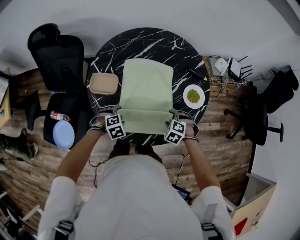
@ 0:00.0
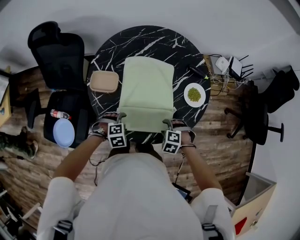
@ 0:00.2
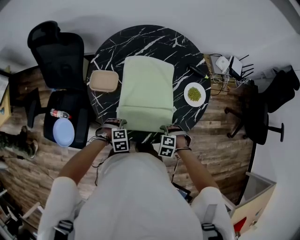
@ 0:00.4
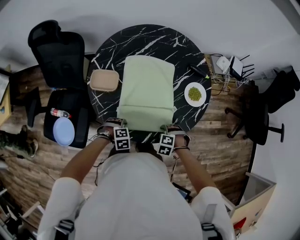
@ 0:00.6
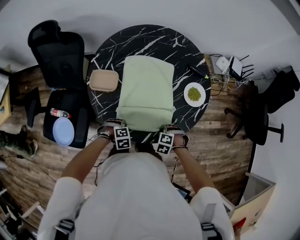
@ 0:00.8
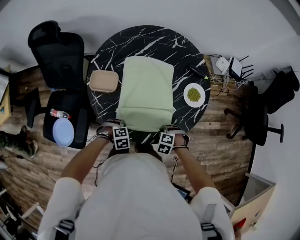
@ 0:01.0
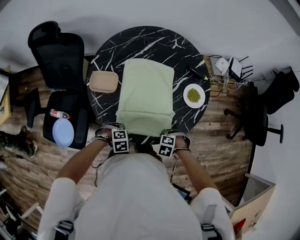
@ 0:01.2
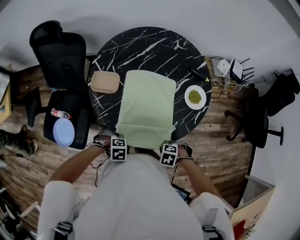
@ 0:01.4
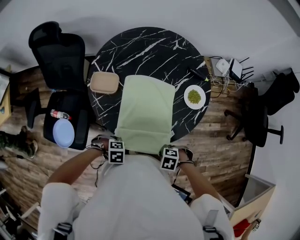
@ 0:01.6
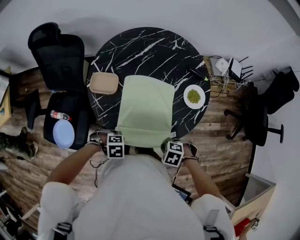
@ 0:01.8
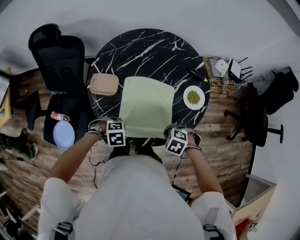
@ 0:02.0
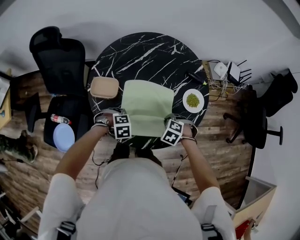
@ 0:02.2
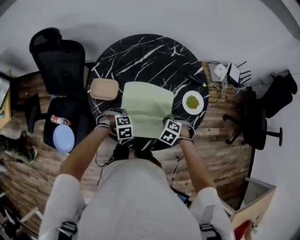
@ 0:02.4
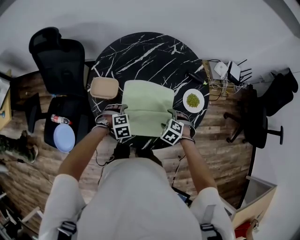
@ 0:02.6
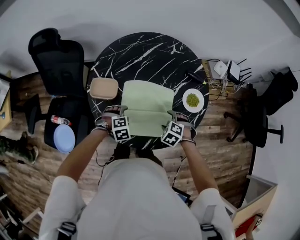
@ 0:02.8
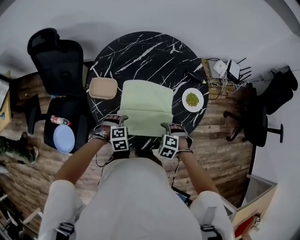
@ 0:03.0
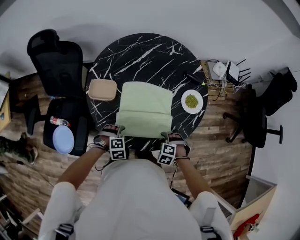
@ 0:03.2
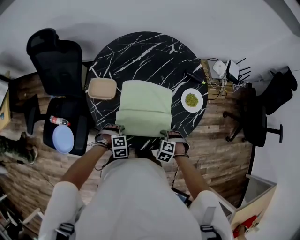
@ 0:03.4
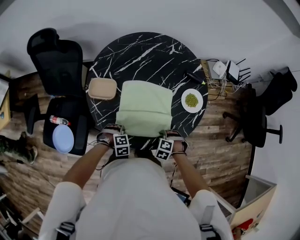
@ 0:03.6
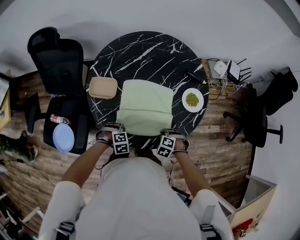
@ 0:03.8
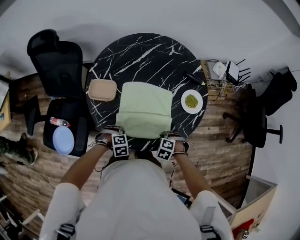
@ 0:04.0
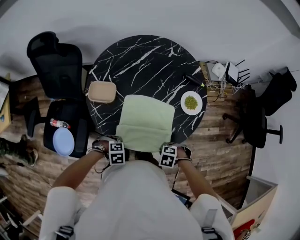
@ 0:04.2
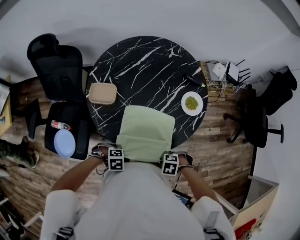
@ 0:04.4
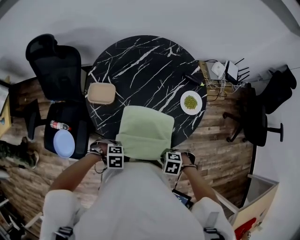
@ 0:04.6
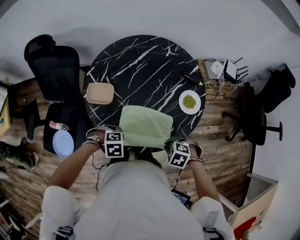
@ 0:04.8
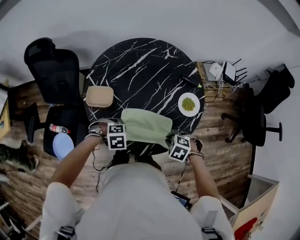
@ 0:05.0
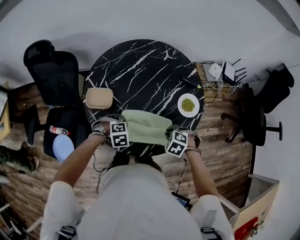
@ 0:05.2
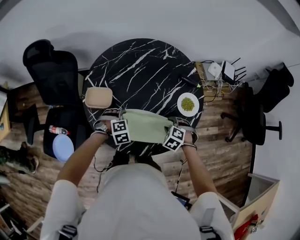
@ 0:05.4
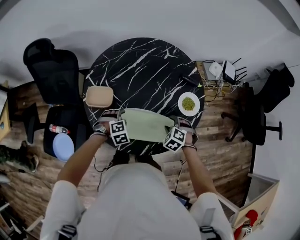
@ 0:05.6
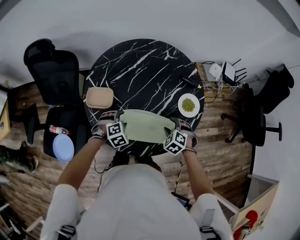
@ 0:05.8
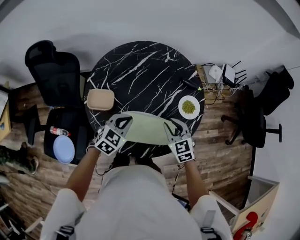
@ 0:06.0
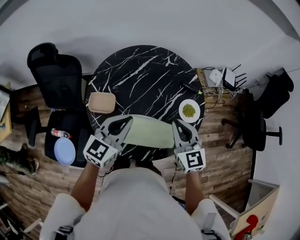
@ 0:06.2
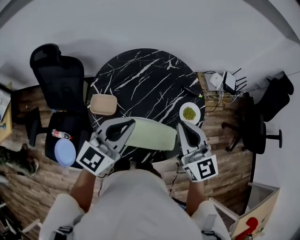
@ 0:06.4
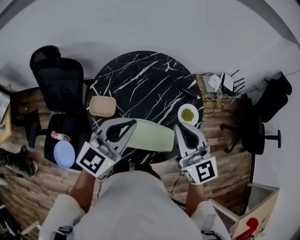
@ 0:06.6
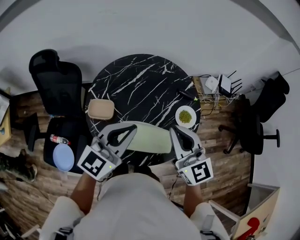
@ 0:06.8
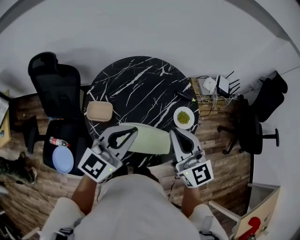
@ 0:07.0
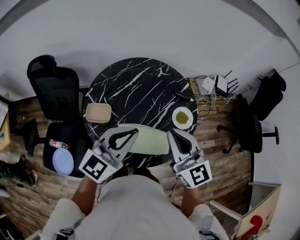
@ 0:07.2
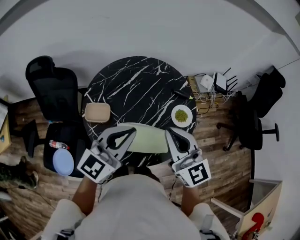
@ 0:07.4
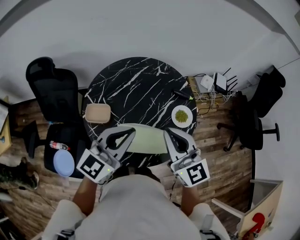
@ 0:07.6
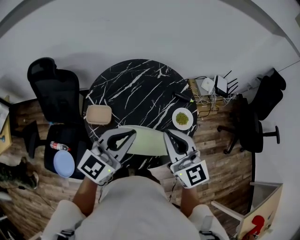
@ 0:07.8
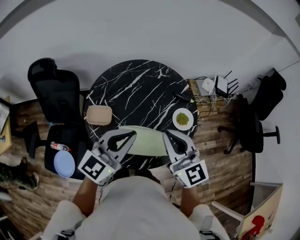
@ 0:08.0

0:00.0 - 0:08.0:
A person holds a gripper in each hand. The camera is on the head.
0:00.0 - 0:01.6: The left gripper ends up approximately 20 cm from where it was, rotates some 30 degrees, and closes up; the right gripper shifts by about 20 cm, changes its angle by approximately 30 degrees, and closes its fingers.
0:01.6 - 0:03.2: The right gripper turns by approximately 30 degrees, and opens up. The left gripper changes its angle by roughly 20 degrees, and opens its fingers.
0:03.2 - 0:04.8: Both grippers move upward, roughly 10 cm. The right gripper closes up. Meanwhile the left gripper closes up.
0:04.8 - 0:06.4: The two grippers go about 30 cm upward. The left gripper tips its fingers upward by roughly 70 degrees, and opens, then closes once more. Meanwhile the right gripper angles its fingers upward, by approximately 70 degrees, and opens, then closes once more.
0:06.4 - 0:08.0: There are only small adjustments of the grippers.

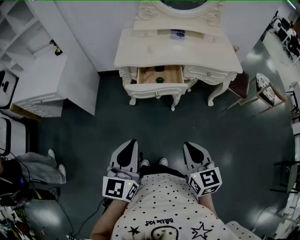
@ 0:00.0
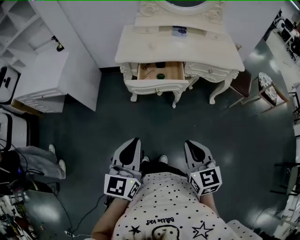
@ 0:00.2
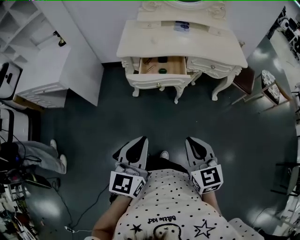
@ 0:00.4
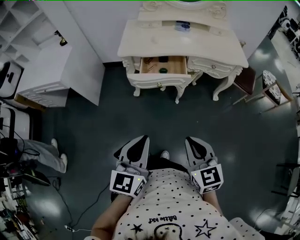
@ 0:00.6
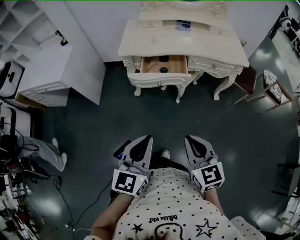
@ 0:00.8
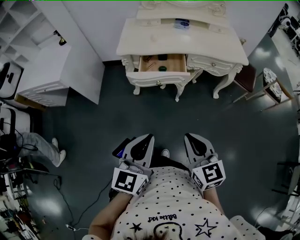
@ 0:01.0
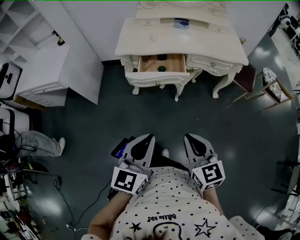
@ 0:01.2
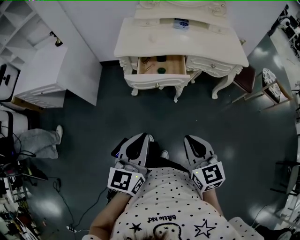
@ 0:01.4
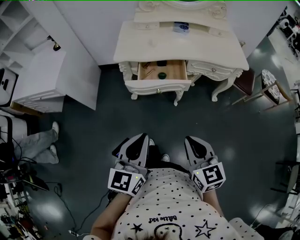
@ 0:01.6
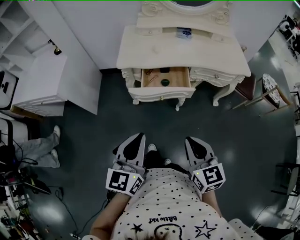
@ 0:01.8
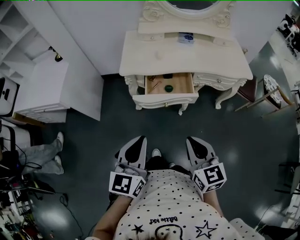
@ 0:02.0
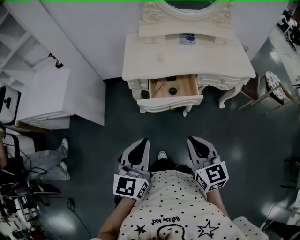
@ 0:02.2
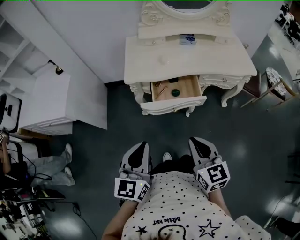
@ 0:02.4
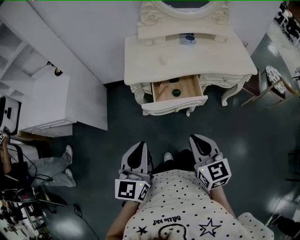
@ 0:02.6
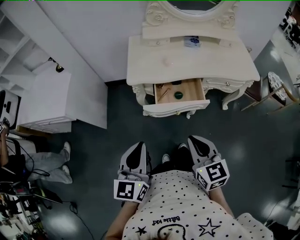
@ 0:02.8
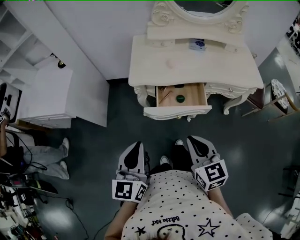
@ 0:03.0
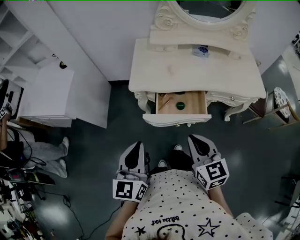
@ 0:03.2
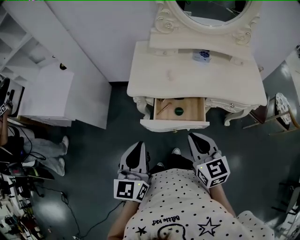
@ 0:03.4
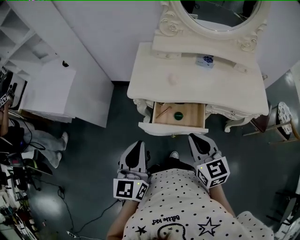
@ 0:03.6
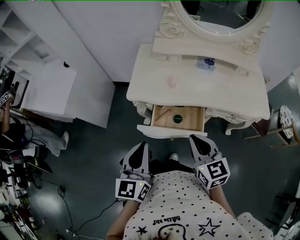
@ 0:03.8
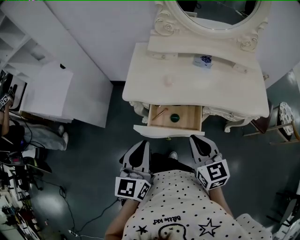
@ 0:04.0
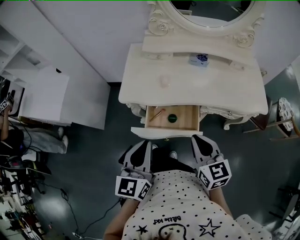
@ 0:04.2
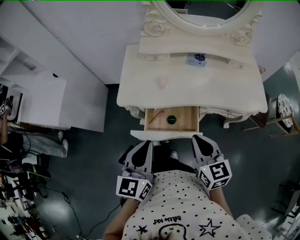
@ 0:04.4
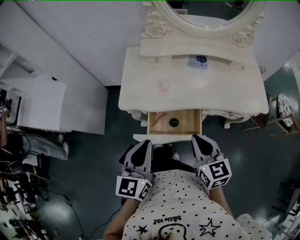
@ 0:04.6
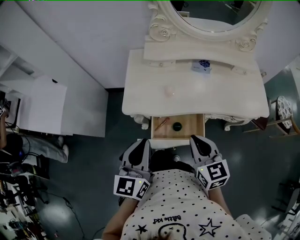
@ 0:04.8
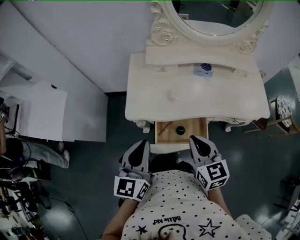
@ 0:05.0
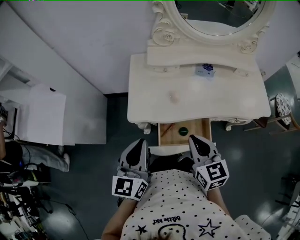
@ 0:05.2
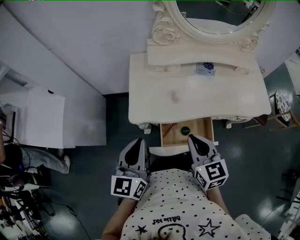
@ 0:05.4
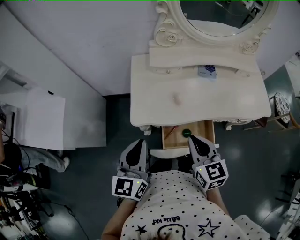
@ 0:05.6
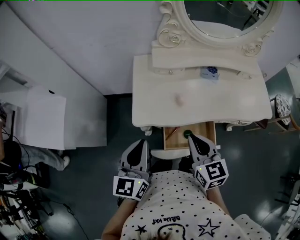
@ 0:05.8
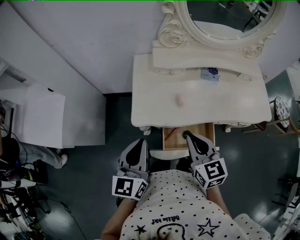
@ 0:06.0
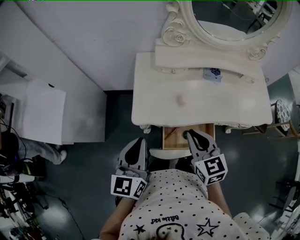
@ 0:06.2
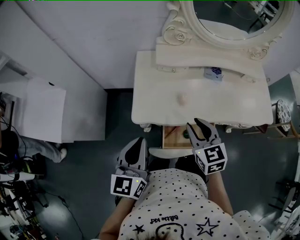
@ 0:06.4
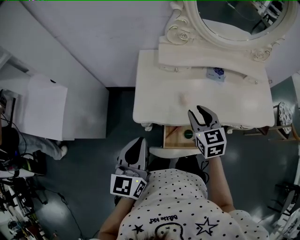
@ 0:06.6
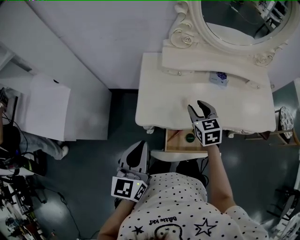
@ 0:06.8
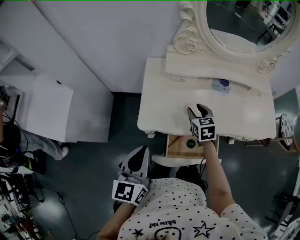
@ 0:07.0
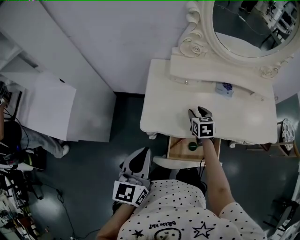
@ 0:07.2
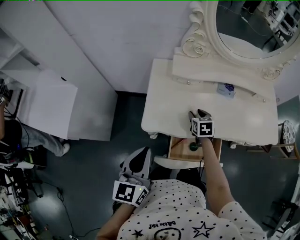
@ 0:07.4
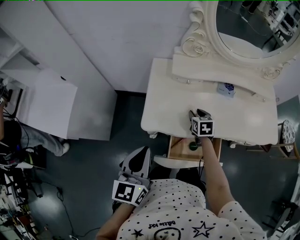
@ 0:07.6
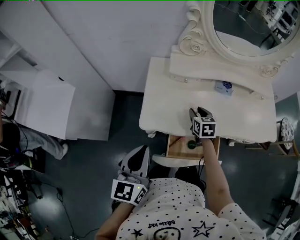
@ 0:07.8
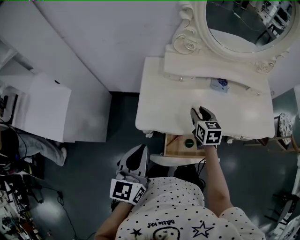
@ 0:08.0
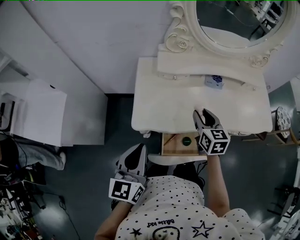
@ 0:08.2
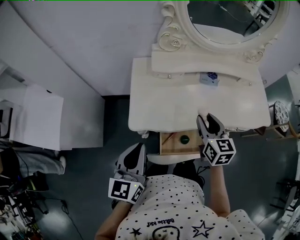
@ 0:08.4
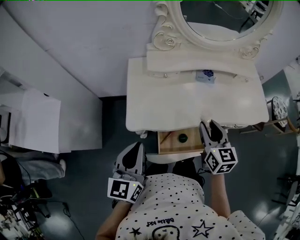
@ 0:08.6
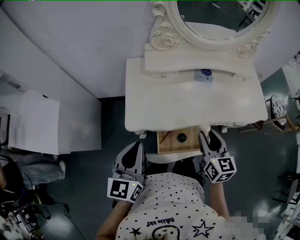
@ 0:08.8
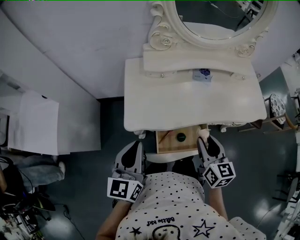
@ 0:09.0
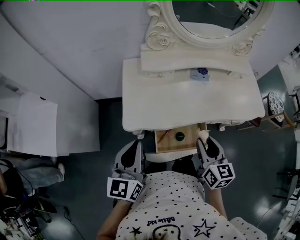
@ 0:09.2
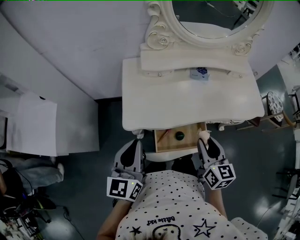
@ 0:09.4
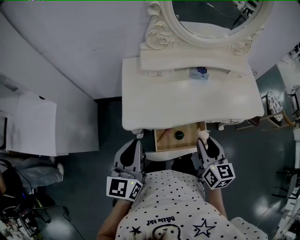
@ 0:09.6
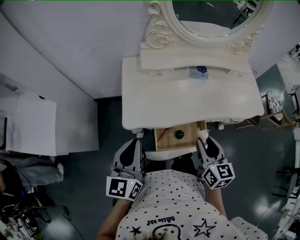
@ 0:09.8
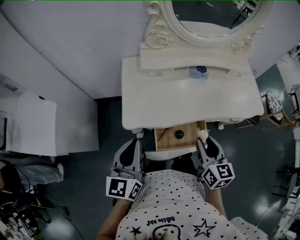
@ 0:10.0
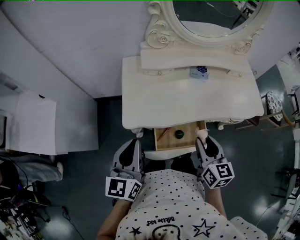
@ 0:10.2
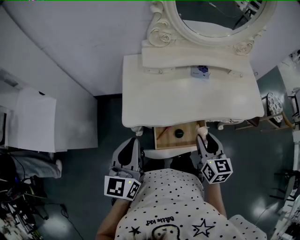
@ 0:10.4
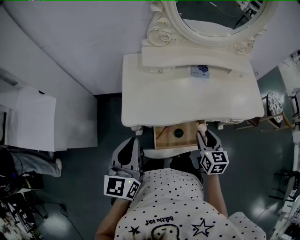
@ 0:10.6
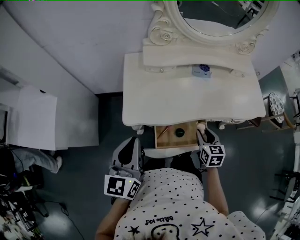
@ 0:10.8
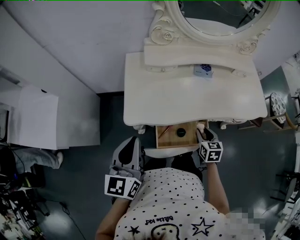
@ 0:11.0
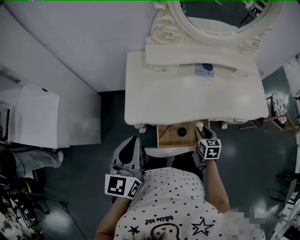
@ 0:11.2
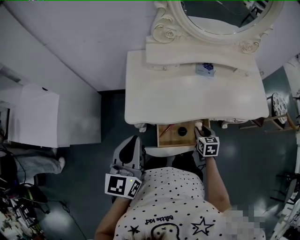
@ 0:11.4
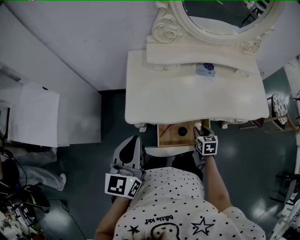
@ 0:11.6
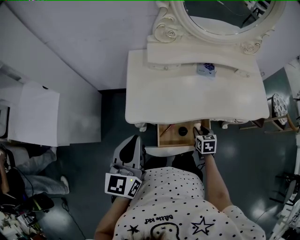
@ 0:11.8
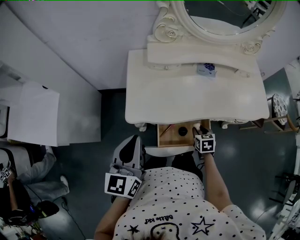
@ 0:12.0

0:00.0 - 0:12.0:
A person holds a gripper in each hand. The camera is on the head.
0:00.0 - 0:01.6: The left gripper moves some 5 cm.
0:01.6 - 0:03.0: The grippers both shift forward and to the left by some 20 cm.
0:03.0 - 0:04.4: The right gripper moves forward and to the right, some 20 cm; the left gripper shifts roughly 20 cm to the right and forward.
0:04.4 - 0:06.0: The grippers both shift to the left and forward by about 20 cm.
0:06.0 - 0:07.6: The right gripper moves forward and downward, approximately 25 cm, changes its angle by roughly 20 degrees, and opens its fingers.
0:07.6 - 0:09.0: The right gripper shifts some 25 cm backward, upward and to the right, and turns by about 30 degrees.
0:09.0 - 0:10.4: The grippers make only small movements.
0:10.4 - 0:12.0: The right gripper goes about 20 cm downward, and swivels approximately 30 degrees.

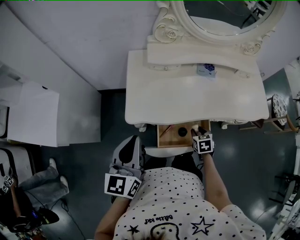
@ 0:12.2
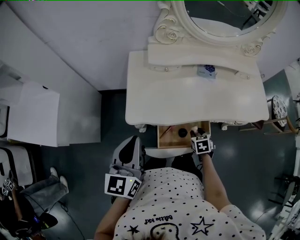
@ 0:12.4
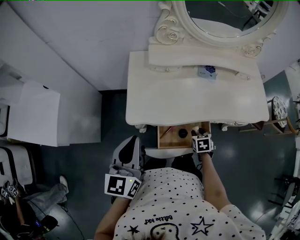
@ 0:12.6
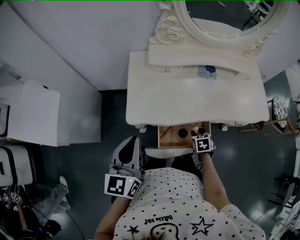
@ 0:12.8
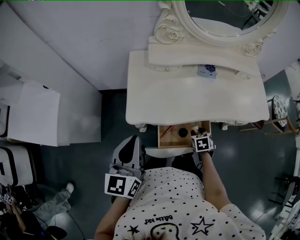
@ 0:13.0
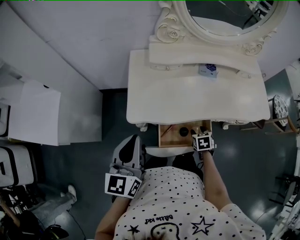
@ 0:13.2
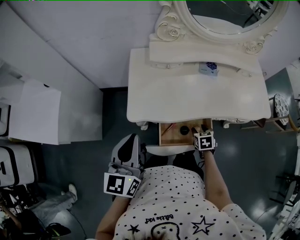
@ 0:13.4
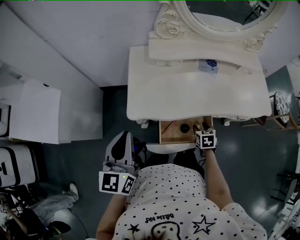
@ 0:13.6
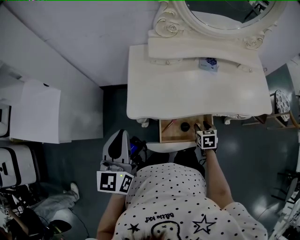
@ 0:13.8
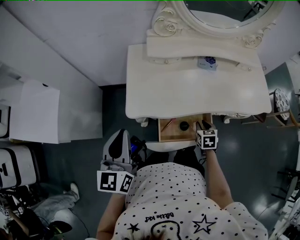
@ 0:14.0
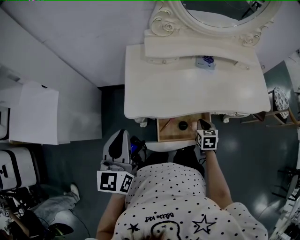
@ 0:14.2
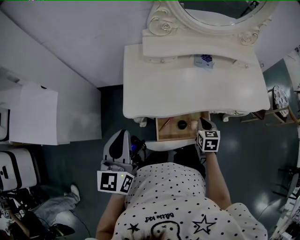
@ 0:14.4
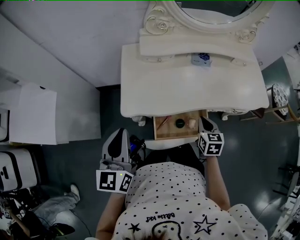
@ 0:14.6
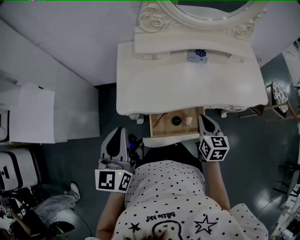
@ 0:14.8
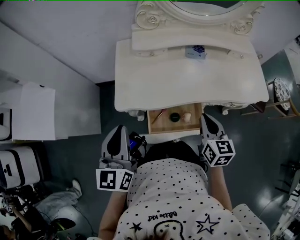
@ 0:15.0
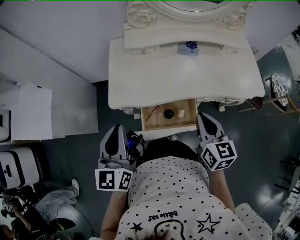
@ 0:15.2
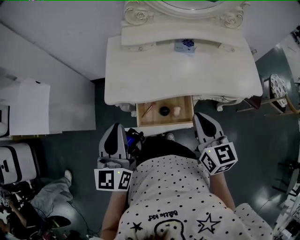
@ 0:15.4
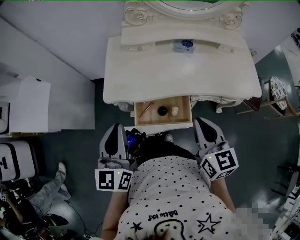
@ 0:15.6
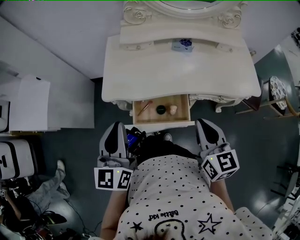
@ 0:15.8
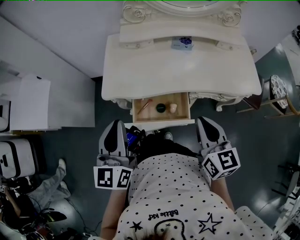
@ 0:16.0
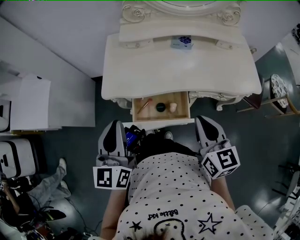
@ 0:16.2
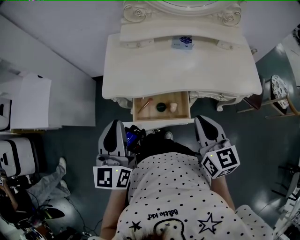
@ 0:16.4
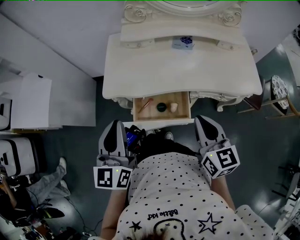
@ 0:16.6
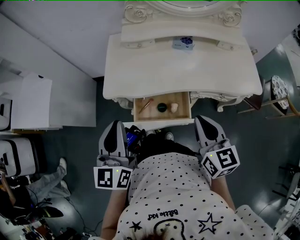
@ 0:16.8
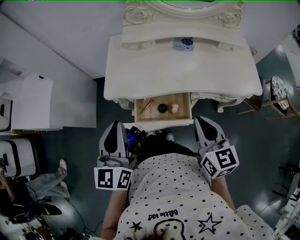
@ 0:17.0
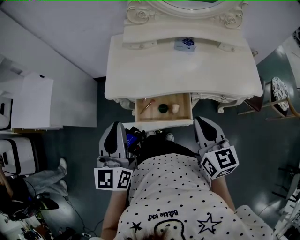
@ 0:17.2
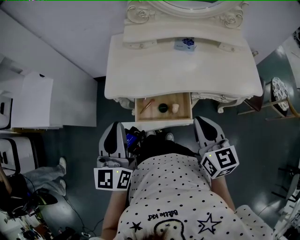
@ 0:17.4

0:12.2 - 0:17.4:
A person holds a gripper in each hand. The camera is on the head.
0:12.2 - 0:14.0: There are only small adjustments of the grippers.
0:14.0 - 0:15.6: The right gripper moves upward, approximately 25 cm, angles its fingers upward, by roughly 30 degrees, and closes its fingers, while the left gripper moves to the right and backward, approximately 15 cm.
0:15.6 - 0:17.4: There are only small adjustments of the grippers.
